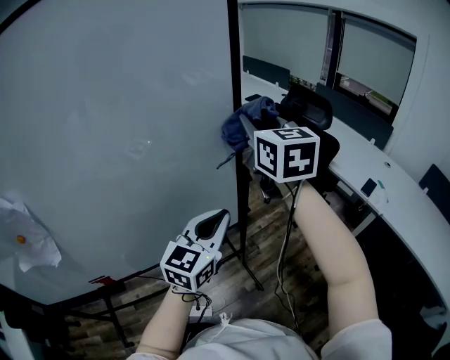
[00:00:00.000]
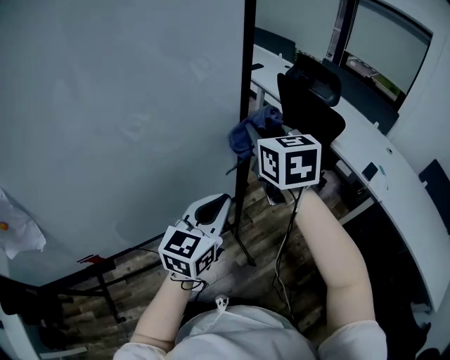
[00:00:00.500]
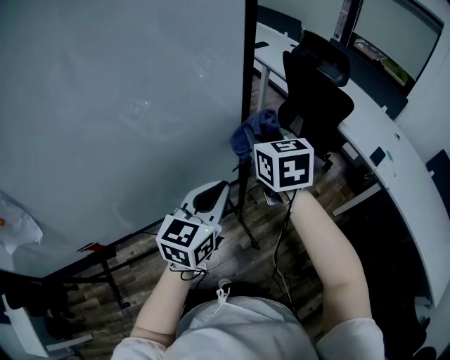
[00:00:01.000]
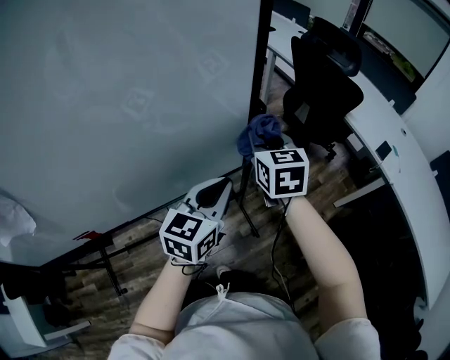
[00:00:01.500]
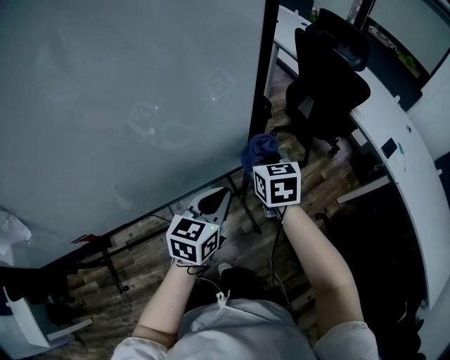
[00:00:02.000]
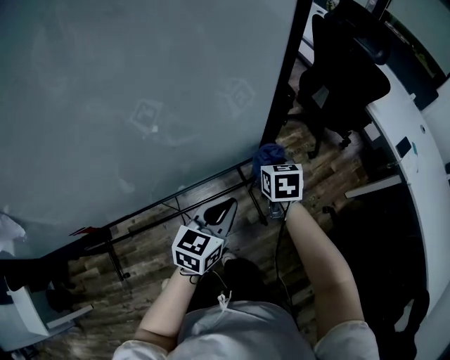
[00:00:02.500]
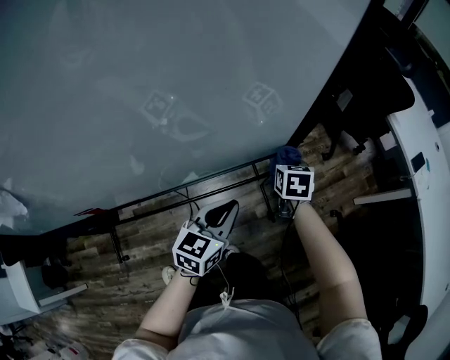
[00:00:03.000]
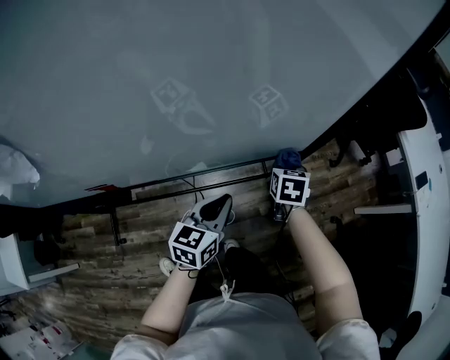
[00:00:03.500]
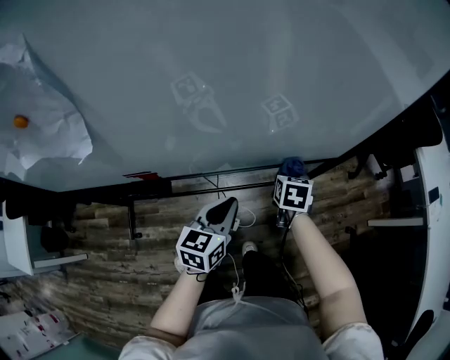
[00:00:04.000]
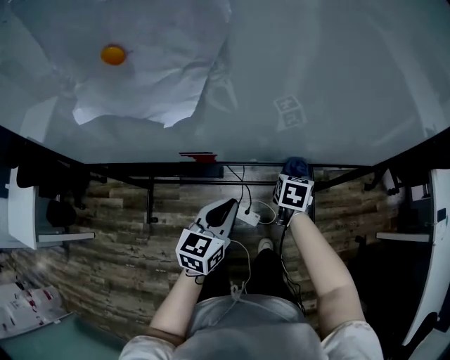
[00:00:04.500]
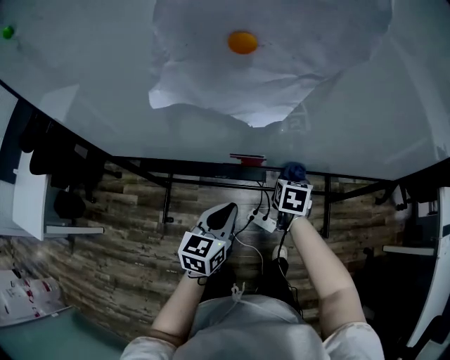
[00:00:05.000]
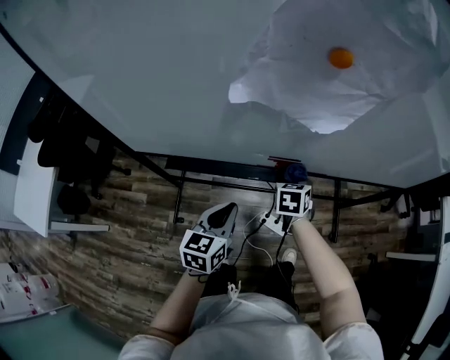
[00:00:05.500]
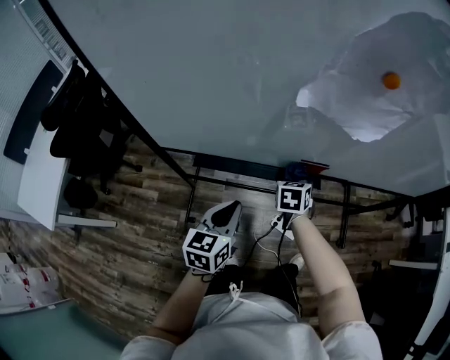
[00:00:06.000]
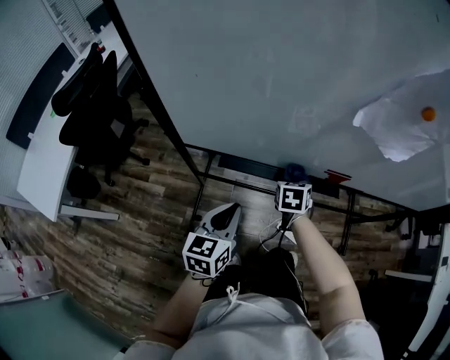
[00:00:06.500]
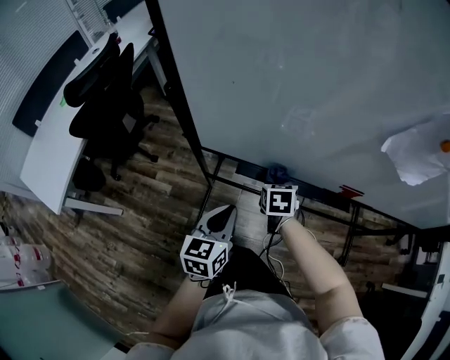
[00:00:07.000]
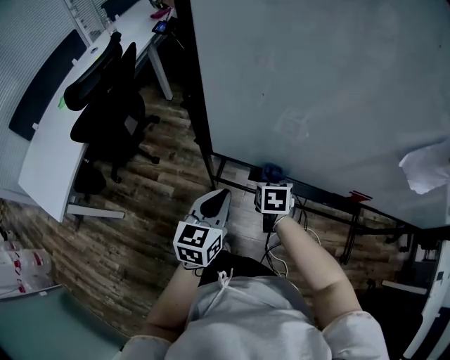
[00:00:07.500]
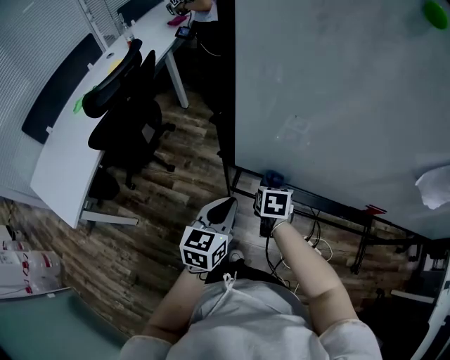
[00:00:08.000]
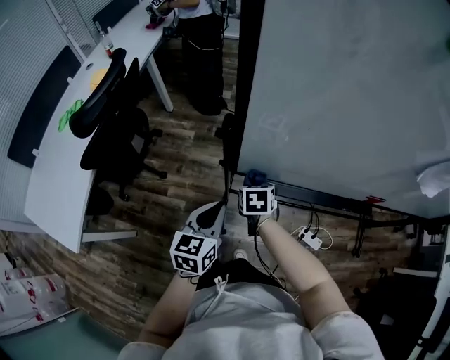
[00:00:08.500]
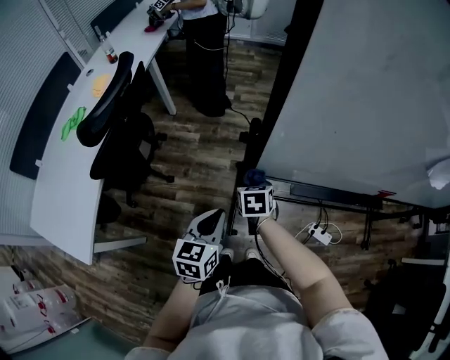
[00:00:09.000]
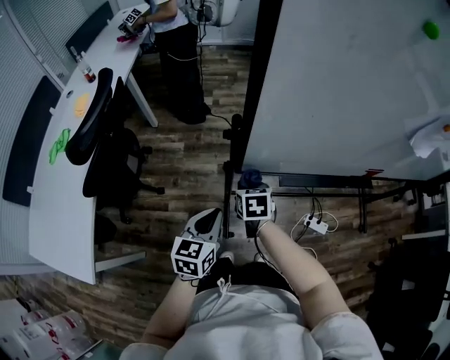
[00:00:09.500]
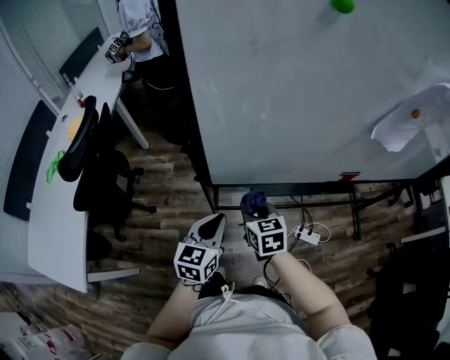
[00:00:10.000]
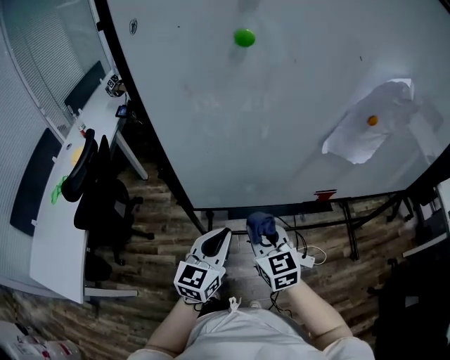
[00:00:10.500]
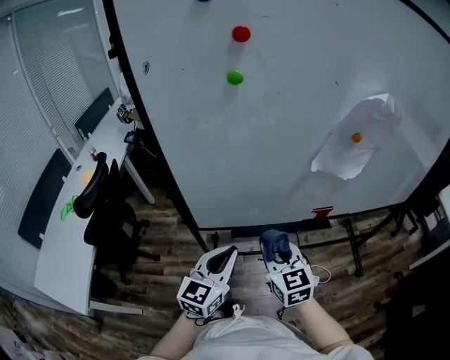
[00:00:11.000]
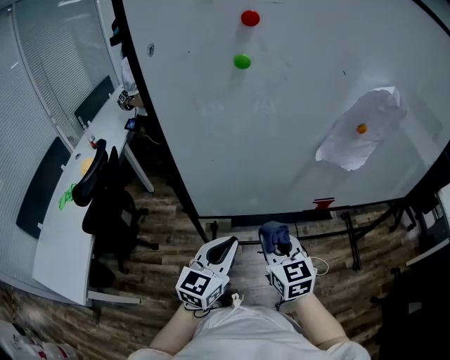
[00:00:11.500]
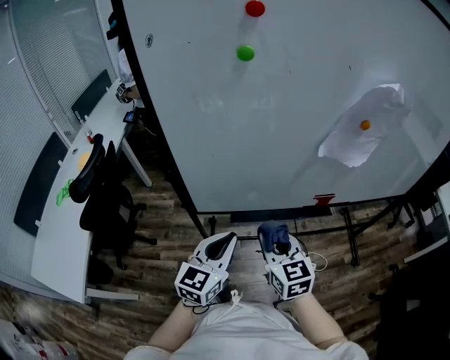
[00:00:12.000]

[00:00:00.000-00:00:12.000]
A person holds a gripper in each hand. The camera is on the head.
00:00:00.000 to 00:00:02.000: The left gripper heads downward, covering about 20 cm, and changes its angle by approximately 20 degrees; the right gripper travels downward by approximately 35 cm, and rotates about 30 degrees.
00:00:02.000 to 00:00:04.000: The left gripper shifts some 25 cm to the left and backward, and changes its angle by some 20 degrees. Meanwhile the right gripper goes roughly 25 cm to the left, downward and backward.
00:00:04.000 to 00:00:06.000: Both grippers are carried to the left, about 50 cm. The right gripper rotates some 20 degrees.
00:00:06.000 to 00:00:08.000: The grippers both shift to the left by some 30 cm.
00:00:08.000 to 00:00:10.000: The right gripper shifts approximately 10 cm upward and backward, and goes to the left and returns, roughly 15 cm each way. The left gripper travels to the left and back again, approximately 10 cm each way.
00:00:10.000 to 00:00:12.000: The left gripper shifts some 15 cm upward and to the right, while the right gripper travels upward, to the right and backward by some 20 cm.

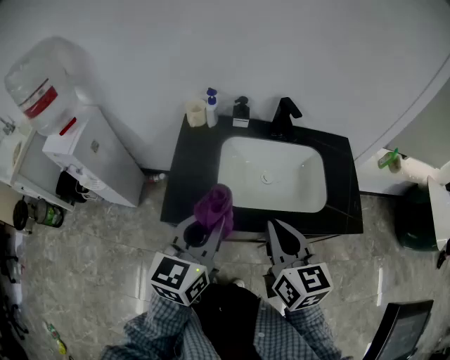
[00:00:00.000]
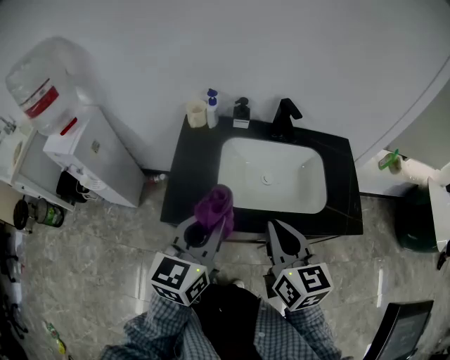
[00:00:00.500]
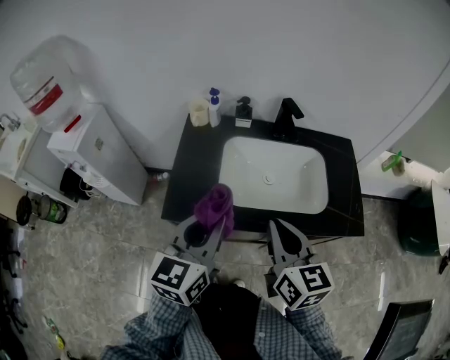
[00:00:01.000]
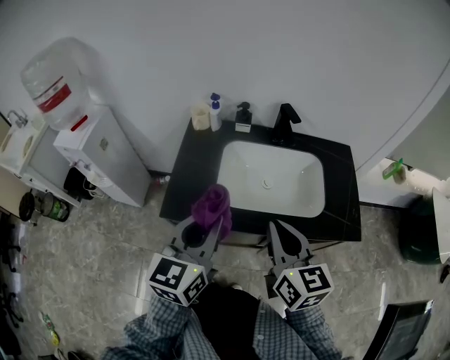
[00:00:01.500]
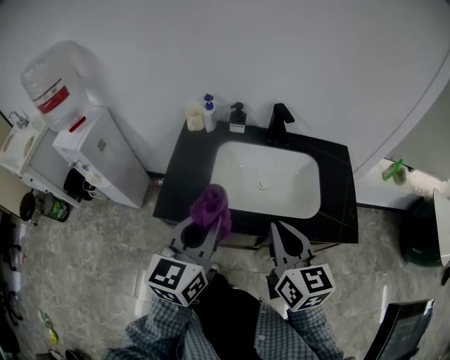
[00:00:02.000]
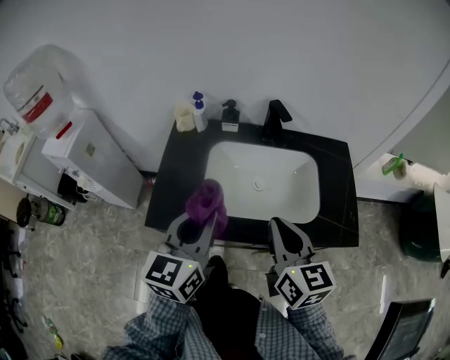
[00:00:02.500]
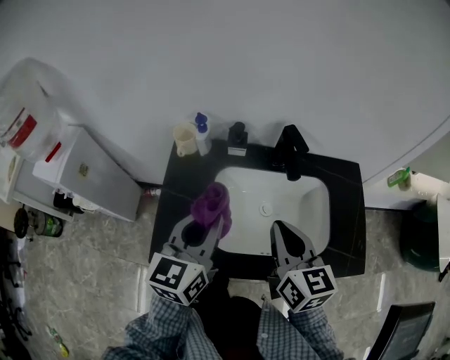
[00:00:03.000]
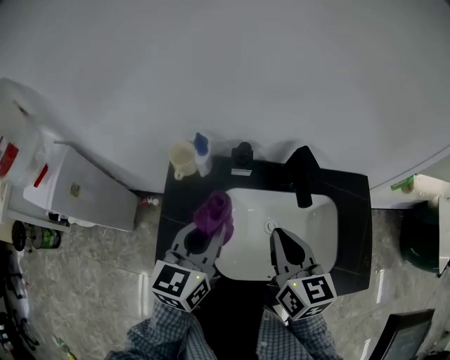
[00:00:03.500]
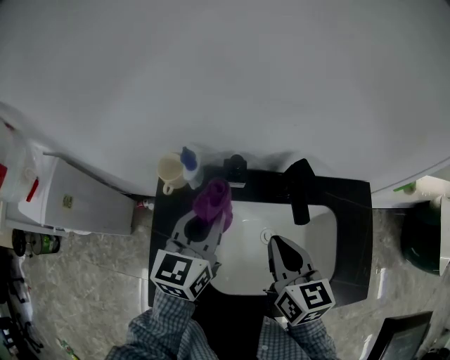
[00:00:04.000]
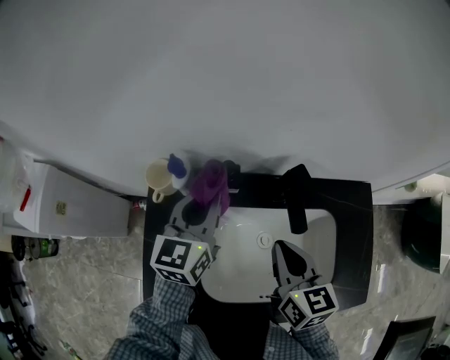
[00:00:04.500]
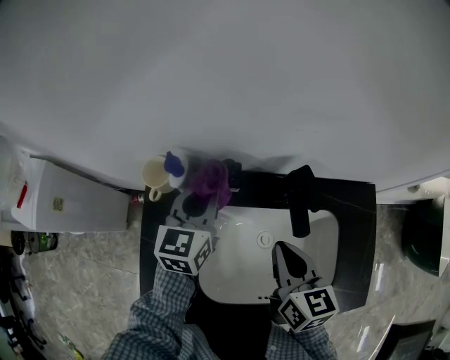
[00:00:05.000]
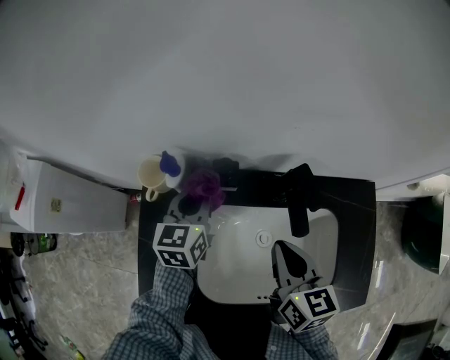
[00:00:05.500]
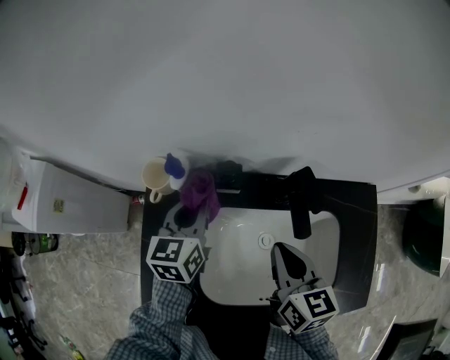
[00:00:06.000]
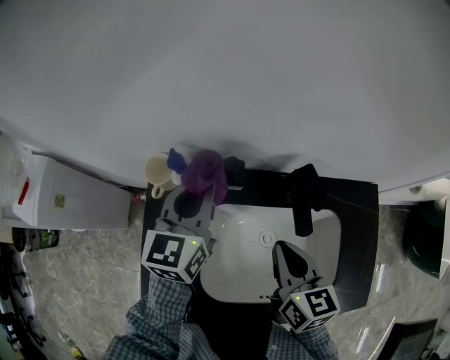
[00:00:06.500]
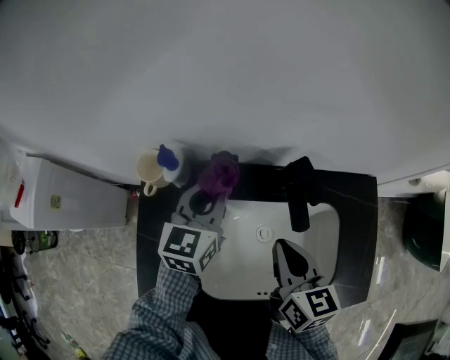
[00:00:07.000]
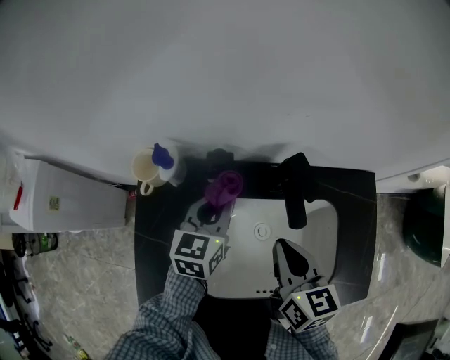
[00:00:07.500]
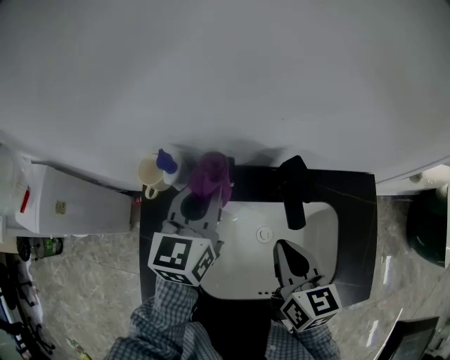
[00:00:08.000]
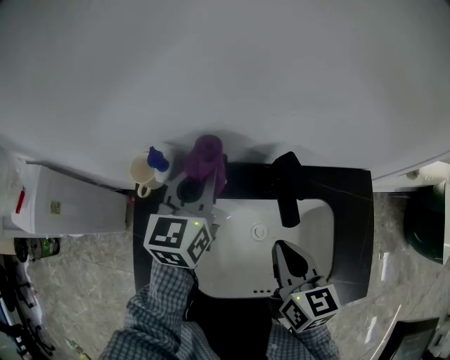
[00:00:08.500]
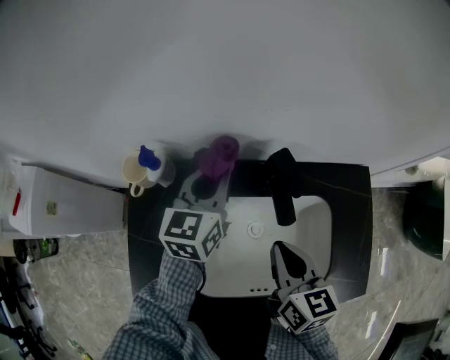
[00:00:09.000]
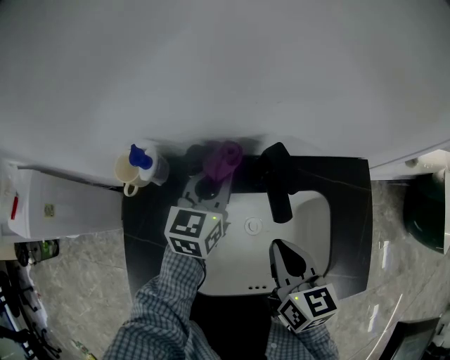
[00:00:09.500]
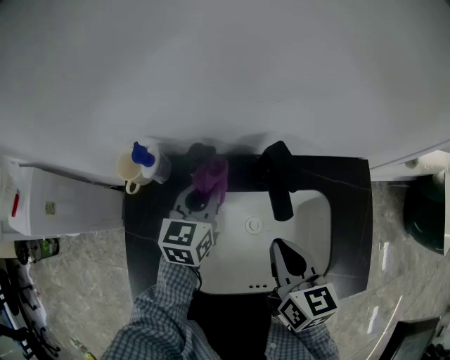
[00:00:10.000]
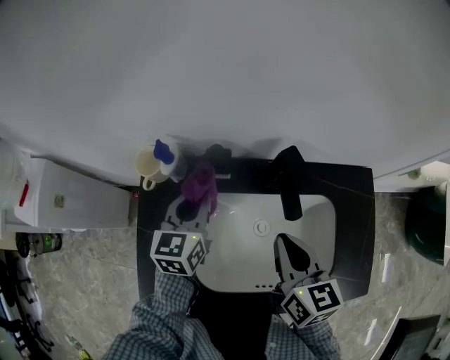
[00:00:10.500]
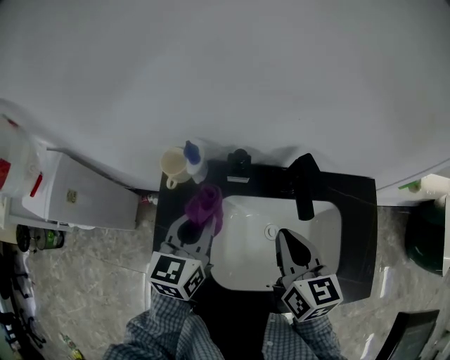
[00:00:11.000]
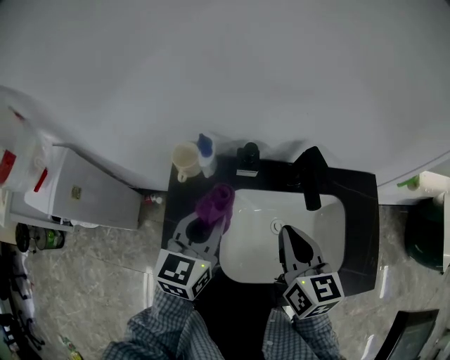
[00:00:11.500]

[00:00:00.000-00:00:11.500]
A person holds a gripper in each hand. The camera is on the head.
00:00:00.000 to 00:00:02.000: The left gripper moves about 5 cm, while the right gripper is displaced to the right by approximately 5 cm.
00:00:02.000 to 00:00:04.000: Both grippers travel together forward, about 35 cm.
00:00:04.000 to 00:00:06.000: The left gripper shifts roughly 10 cm downward and forward.
00:00:06.000 to 00:00:07.500: The left gripper is displaced to the right by some 10 cm, and travels upward and back again, some 5 cm each way.
00:00:07.500 to 00:00:09.500: The left gripper reaches roughly 10 cm upward, then returns.
00:00:09.500 to 00:00:11.500: The left gripper shifts approximately 20 cm backward, to the left and upward, while the right gripper heads to the left and upward, covering some 10 cm.

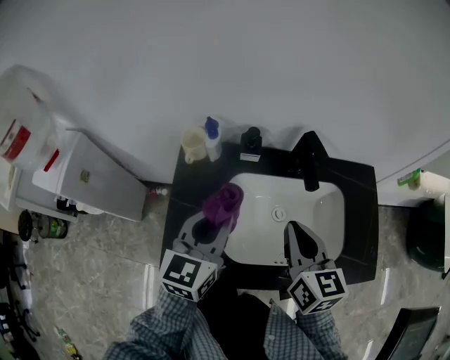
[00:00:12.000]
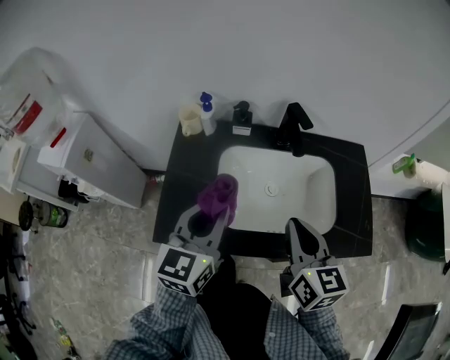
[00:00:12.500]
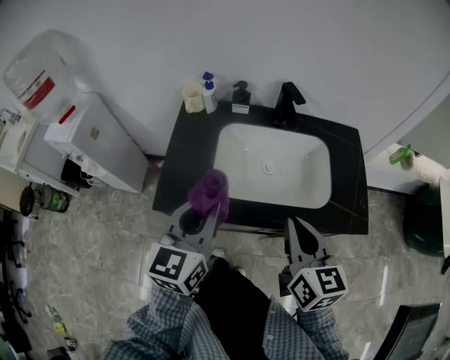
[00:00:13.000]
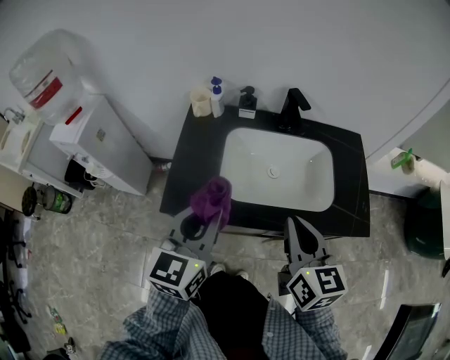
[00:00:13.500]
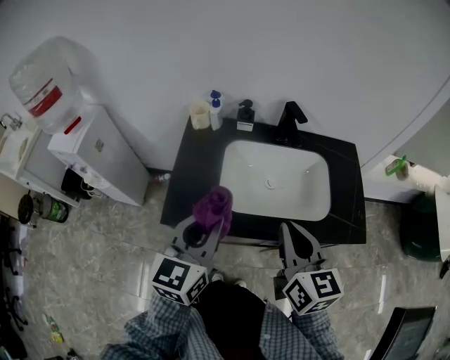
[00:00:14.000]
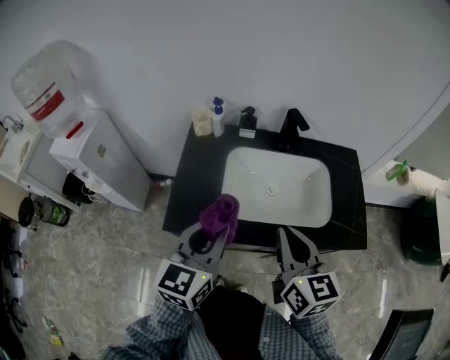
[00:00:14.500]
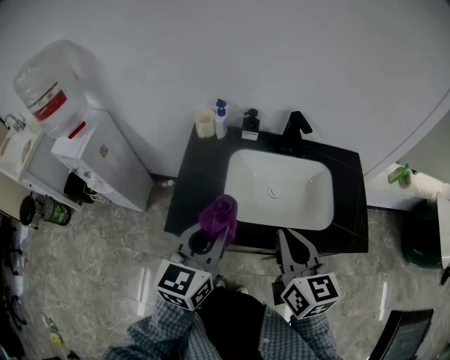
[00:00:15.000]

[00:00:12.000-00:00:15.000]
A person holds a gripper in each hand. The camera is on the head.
00:00:12.000 to 00:00:13.500: Both grippers move backward, roughly 20 cm.
00:00:13.500 to 00:00:15.000: The grippers stay close to where they were, moving slightly.
